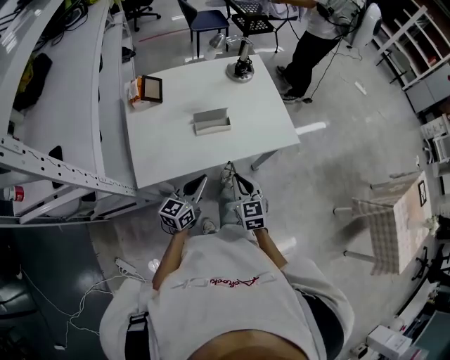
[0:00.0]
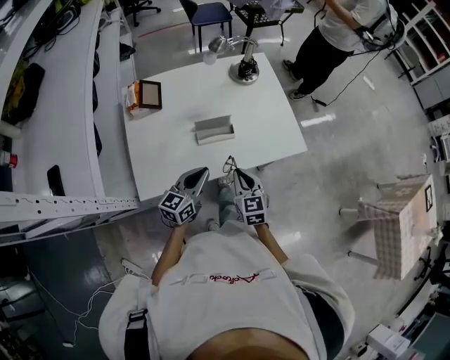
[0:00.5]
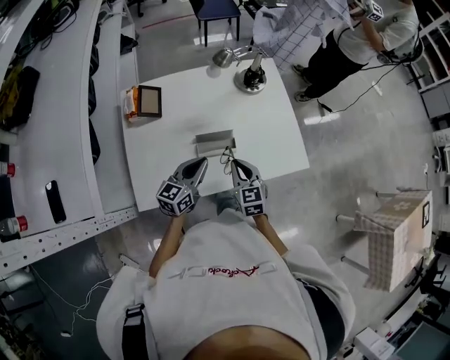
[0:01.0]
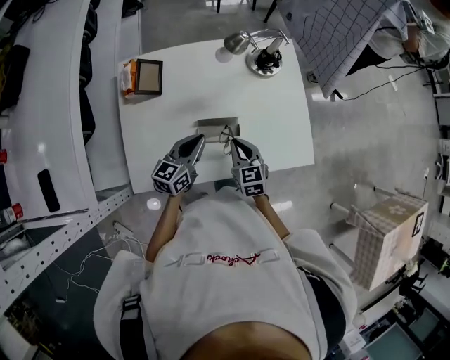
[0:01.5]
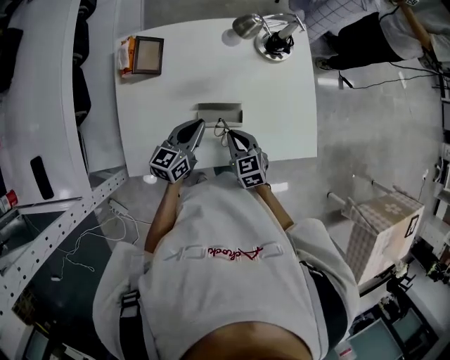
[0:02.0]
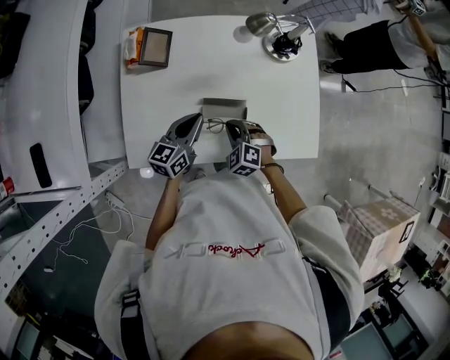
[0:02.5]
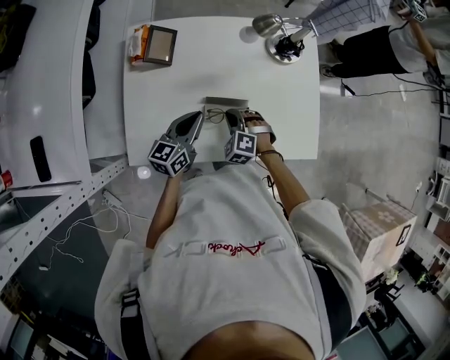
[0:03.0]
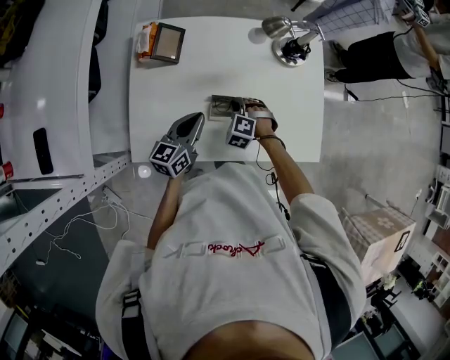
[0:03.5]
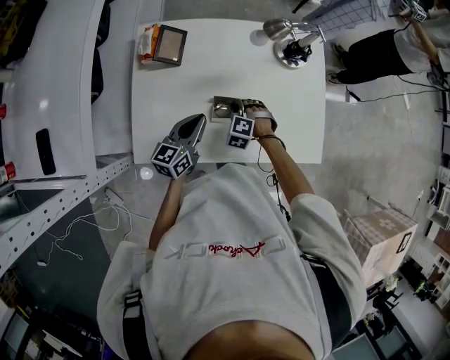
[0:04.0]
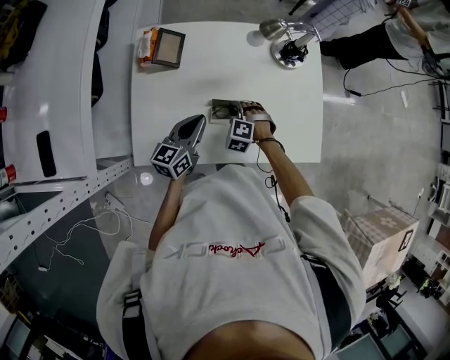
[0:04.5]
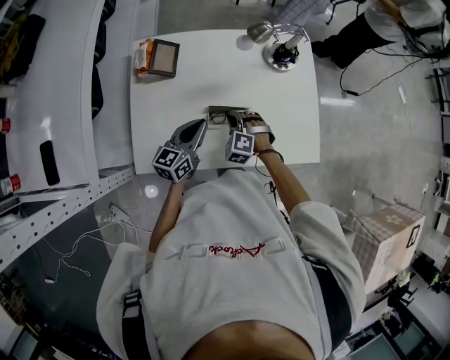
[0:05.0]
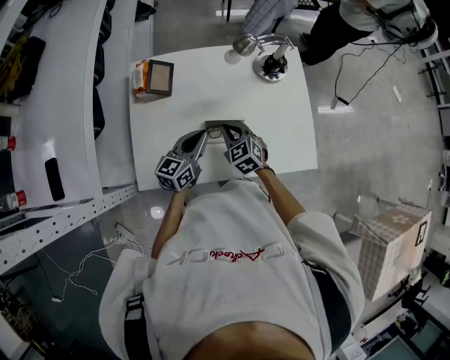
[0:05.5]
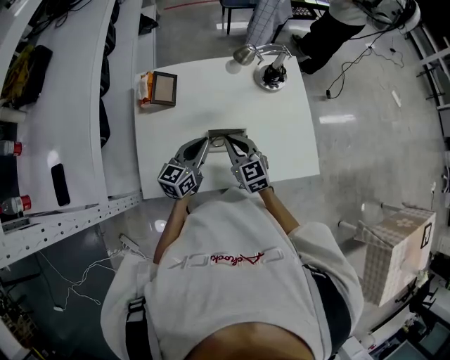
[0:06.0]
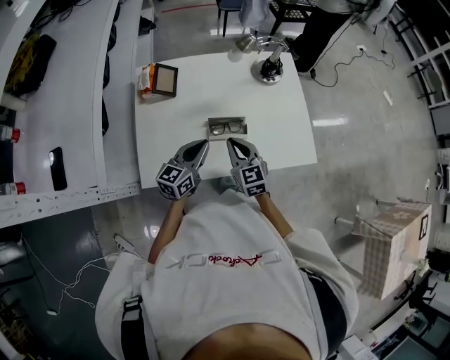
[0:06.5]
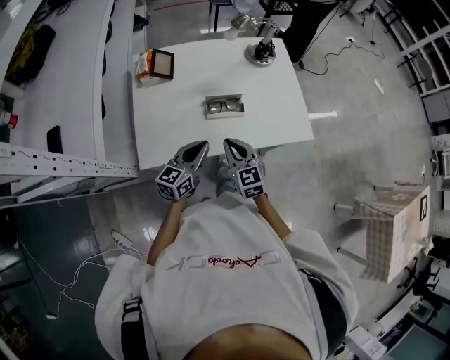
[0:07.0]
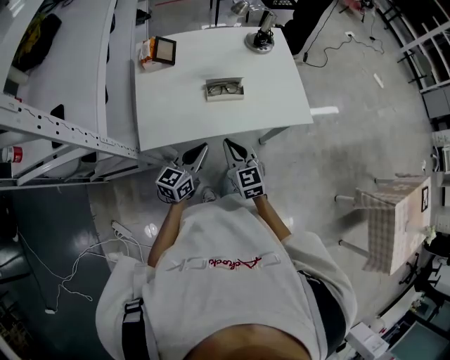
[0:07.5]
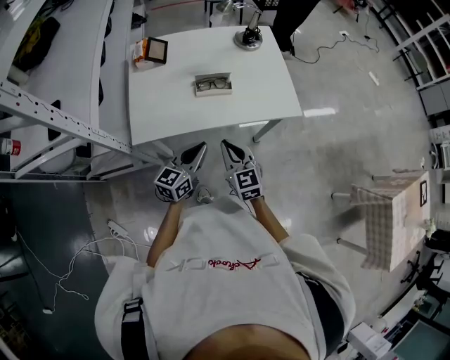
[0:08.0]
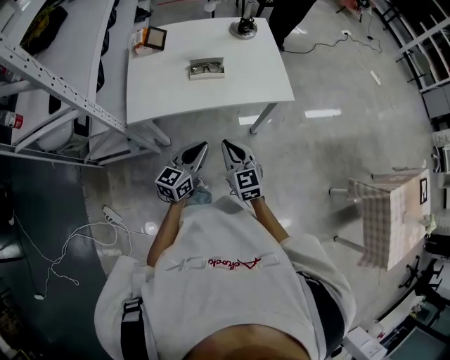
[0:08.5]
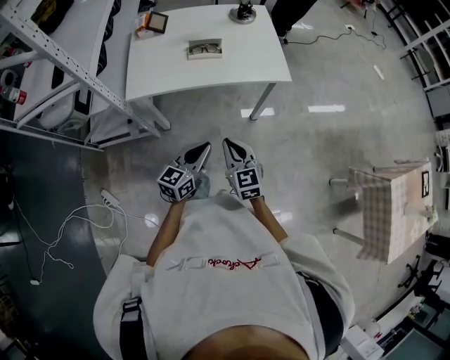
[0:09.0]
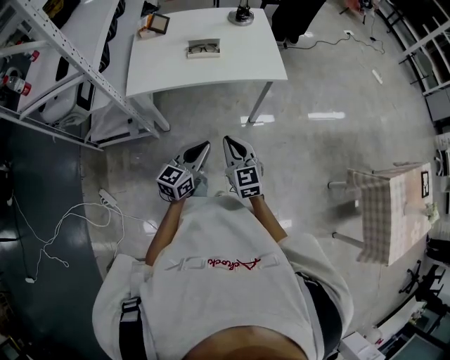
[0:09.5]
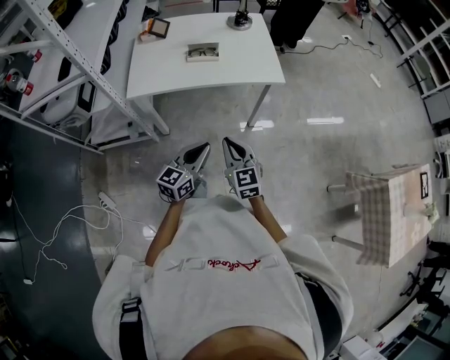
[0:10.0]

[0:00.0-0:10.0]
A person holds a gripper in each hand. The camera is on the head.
0.0 to 2.0 s: The right gripper goes roughly 20 cm forward and downward, and turns by about 30 degrees. Meanwhile the left gripper is displaced forward by some 25 cm.
2.0 to 4.0 s: The right gripper goes about 10 cm forward and downward, and rolls counterclockwise, seen from behind, by some 60 degrees.
4.0 to 6.0 s: The right gripper goes about 15 cm upward, and tips its fingers upward by roughly 40 degrees.
6.0 to 8.0 s: The grippers both shift backward by approximately 25 cm.
8.0 to 10.0 s: Both grippers travel together backward and to the right, some 25 cm.

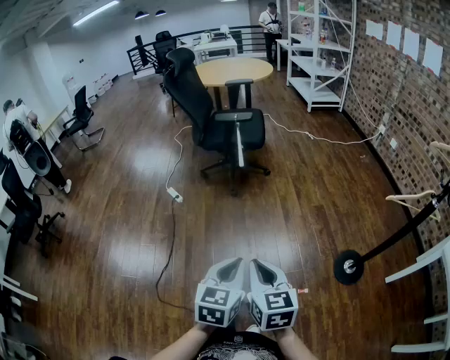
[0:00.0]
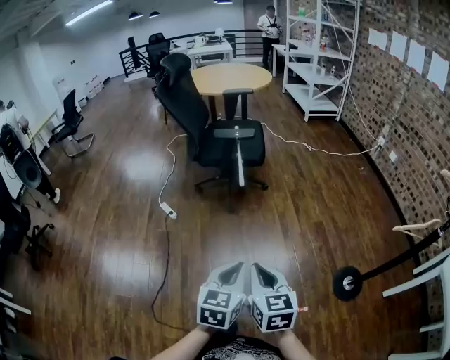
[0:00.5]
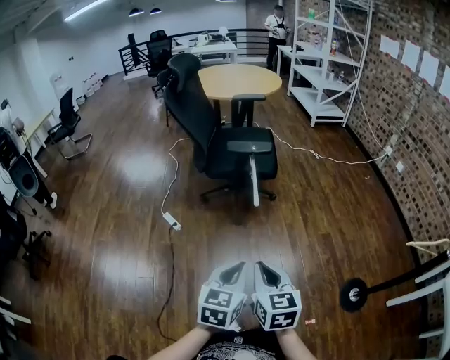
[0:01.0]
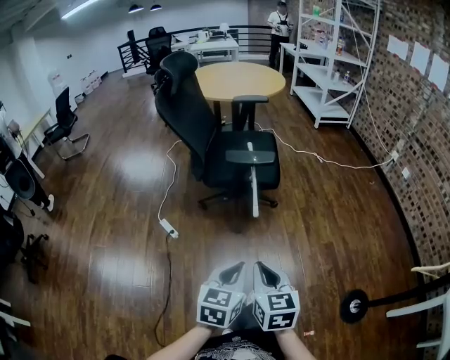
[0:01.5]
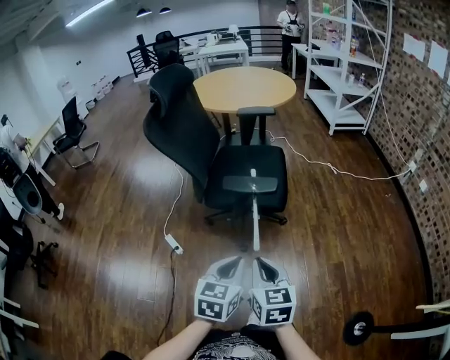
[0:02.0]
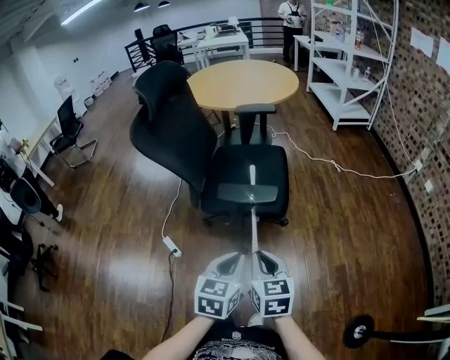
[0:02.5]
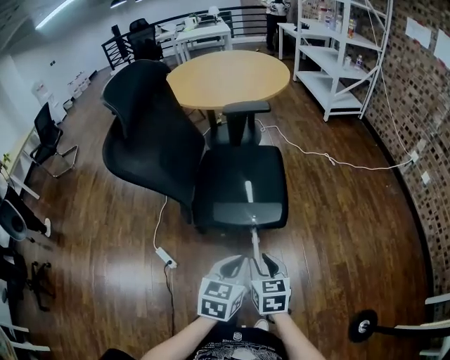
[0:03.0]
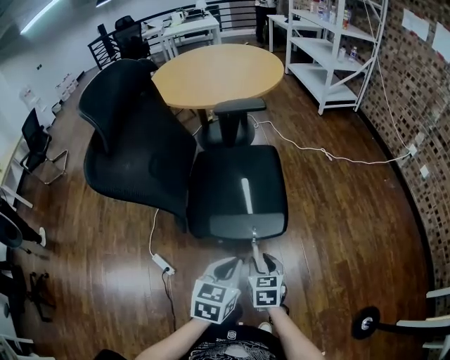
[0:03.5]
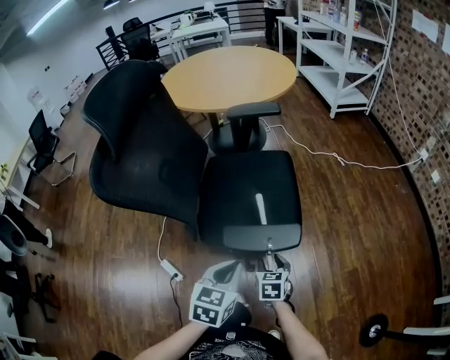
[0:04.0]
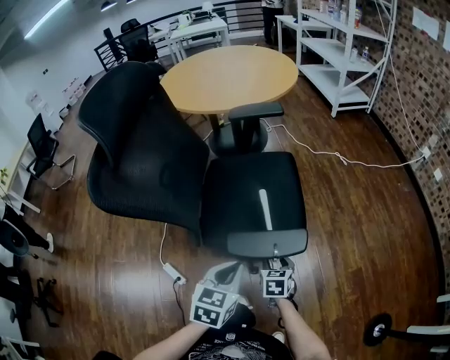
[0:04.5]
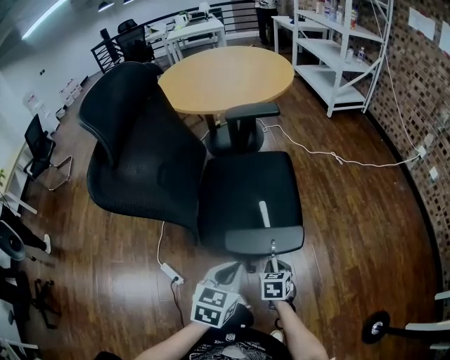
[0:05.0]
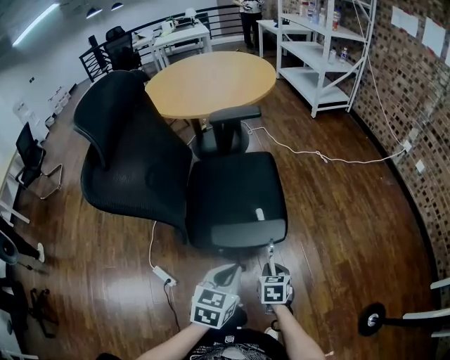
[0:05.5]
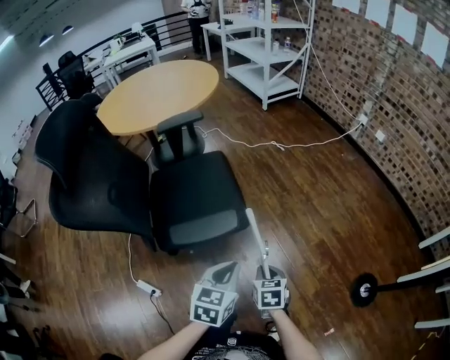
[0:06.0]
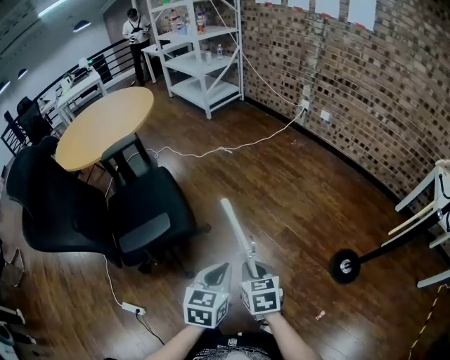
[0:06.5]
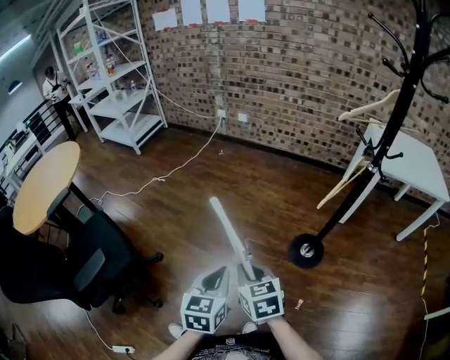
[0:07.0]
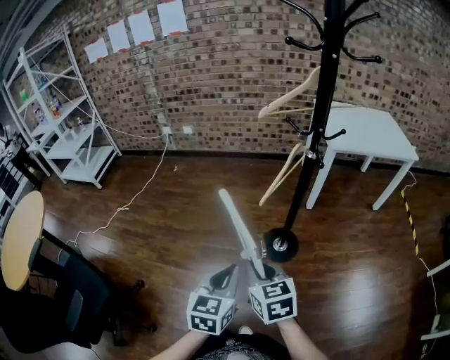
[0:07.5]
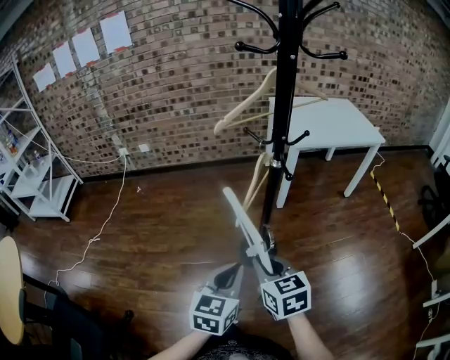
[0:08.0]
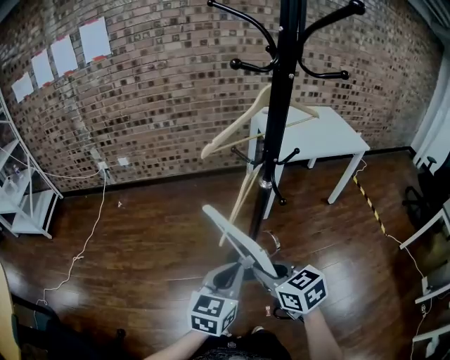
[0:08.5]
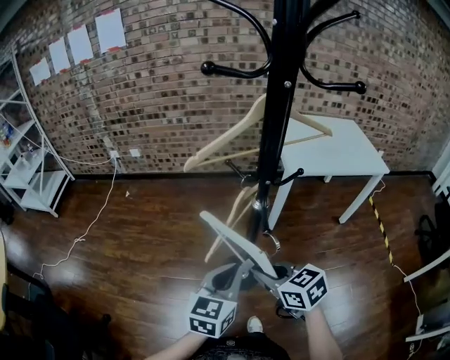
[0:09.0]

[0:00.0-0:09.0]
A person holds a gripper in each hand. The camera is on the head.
0.0 to 2.0 s: The pair of grippers is taken forward, approximately 50 cm.
2.0 to 4.5 s: The left gripper is displaced forward and to the left by some 30 cm, while the right gripper is displaced forward and downward by some 40 cm, rotates roughly 30 degrees, and opens its fingers.
4.5 to 7.0 s: The pair of grippers is taken about 60 cm. The right gripper turns by some 40 degrees, and closes its fingers. The left gripper changes its angle by approximately 50 degrees.
7.0 to 9.0 s: The two grippers travel together, approximately 50 cm. The left gripper changes its angle by some 30 degrees.

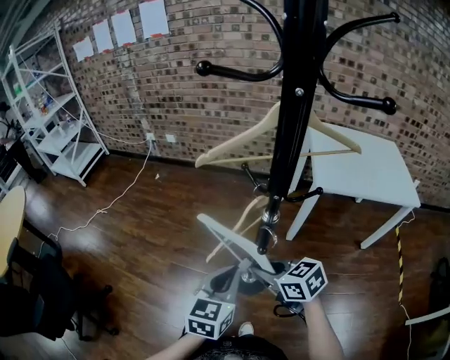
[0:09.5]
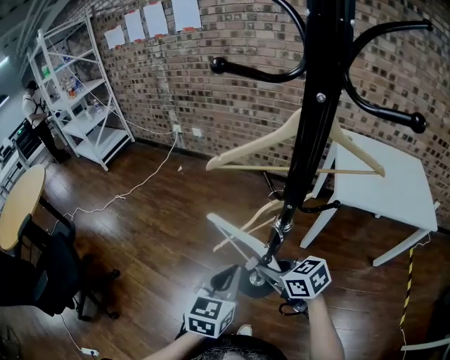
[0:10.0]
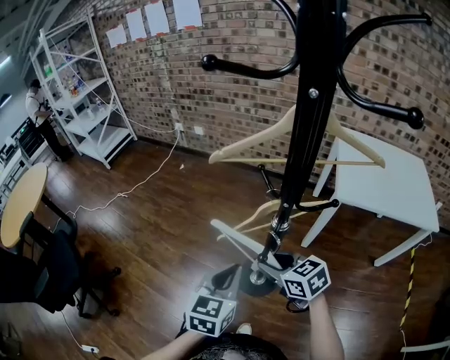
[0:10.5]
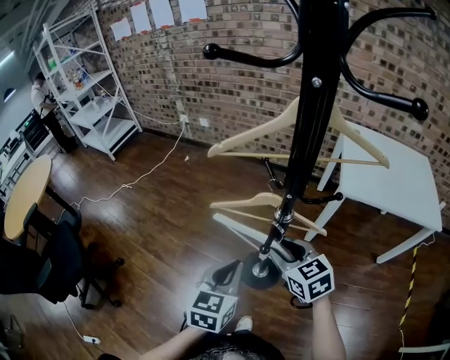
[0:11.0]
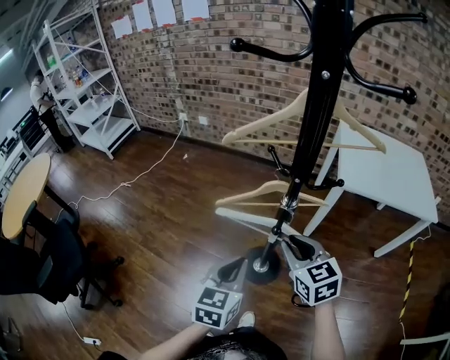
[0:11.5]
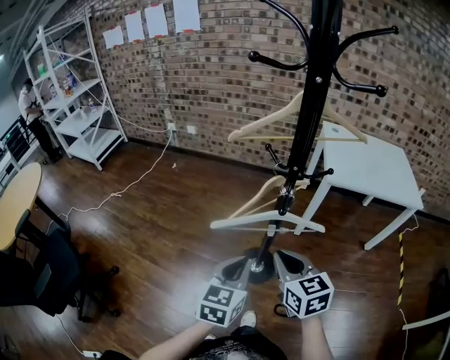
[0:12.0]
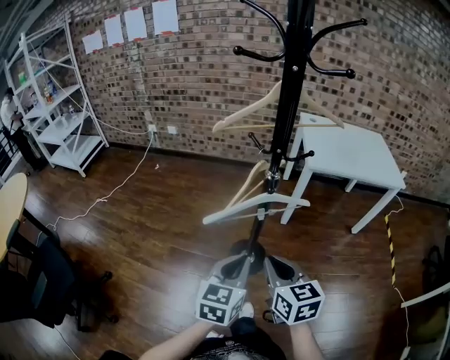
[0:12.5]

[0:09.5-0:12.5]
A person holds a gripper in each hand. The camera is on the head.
9.5 to 11.0 s: The right gripper is displaced to the right by some 5 cm, and opens.
11.0 to 12.5 s: Both grippers travel together backward, roughly 15 cm. The right gripper rotates roughly 30 degrees, and closes its fingers.

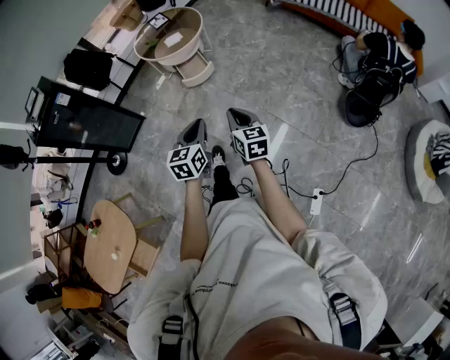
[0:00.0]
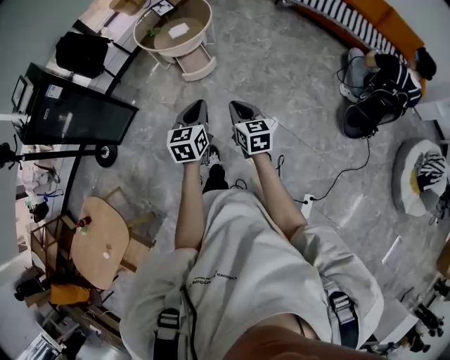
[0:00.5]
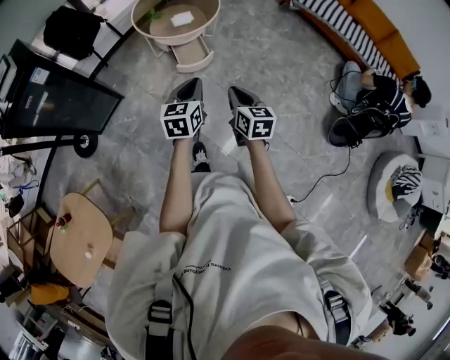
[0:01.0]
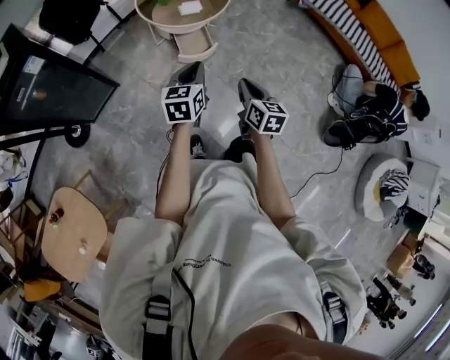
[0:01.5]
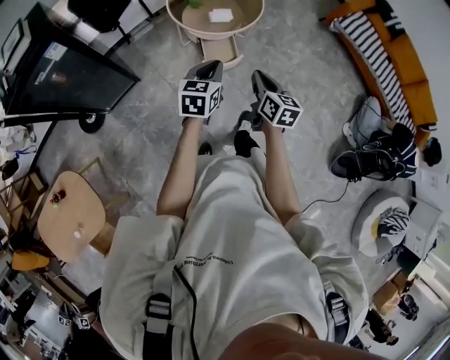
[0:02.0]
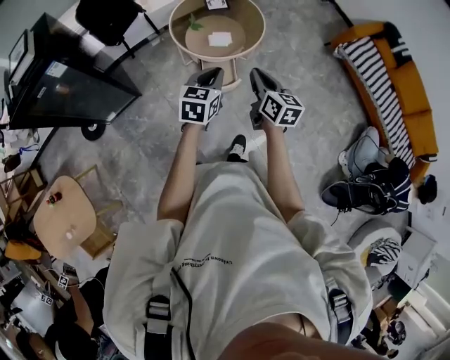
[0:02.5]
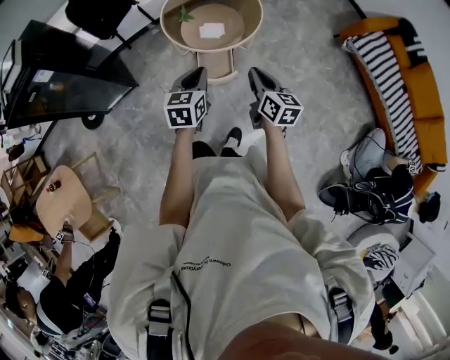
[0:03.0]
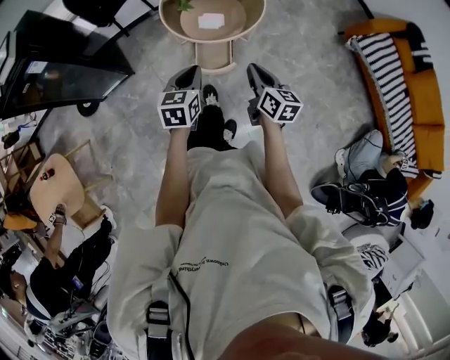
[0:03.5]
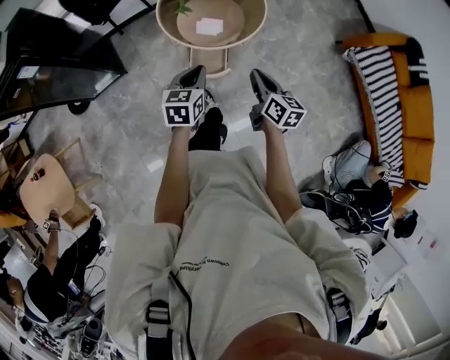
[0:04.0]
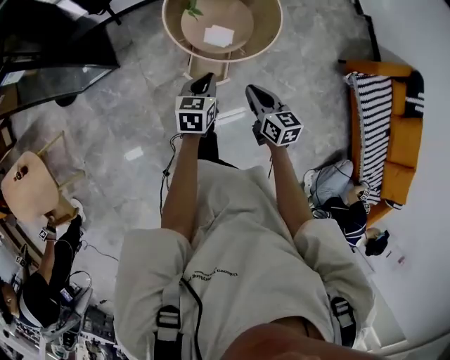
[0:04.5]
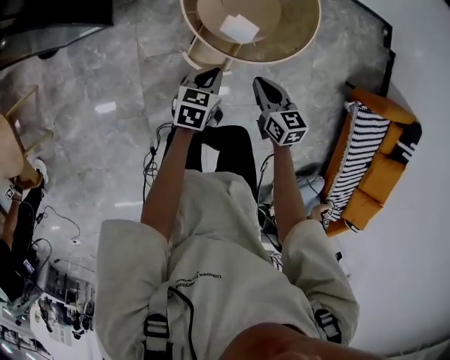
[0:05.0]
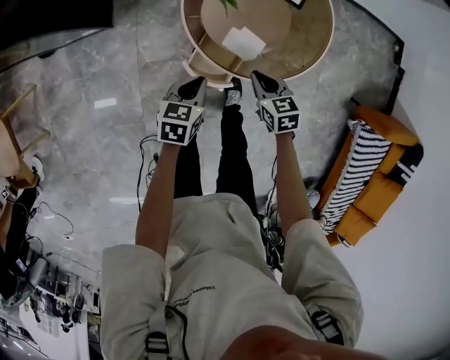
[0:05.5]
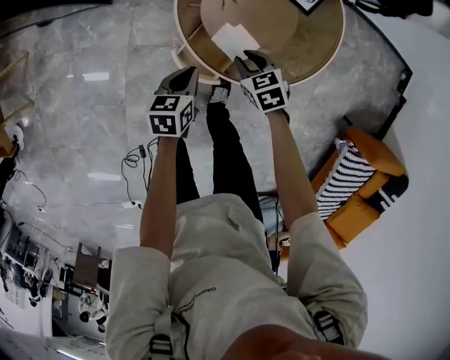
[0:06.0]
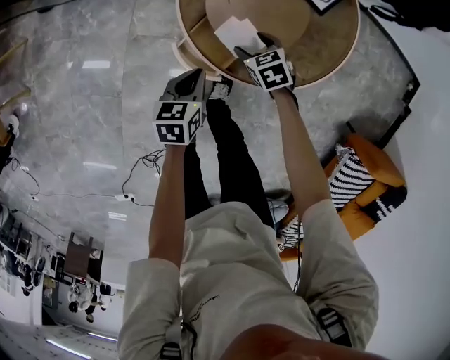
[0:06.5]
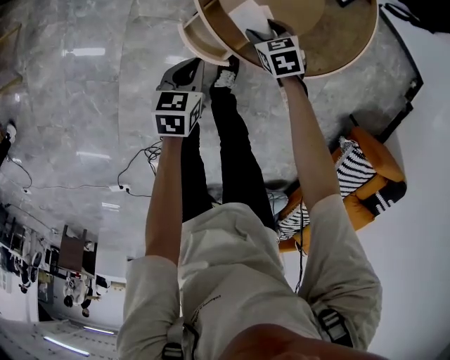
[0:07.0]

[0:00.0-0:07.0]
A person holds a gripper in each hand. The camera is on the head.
0.0 to 2.0 s: The pair of grippers is taken forward and to the left, some 50 cm.
2.0 to 3.5 s: Both grippers move forward and to the right, approximately 25 cm.
3.5 to 5.0 s: Both grippers move forward and downward, approximately 35 cm. The left gripper changes its angle by approximately 20 degrees; the right gripper rotates some 40 degrees.
5.0 to 7.0 s: The left gripper is displaced downward by roughly 20 cm, and changes its angle by roughly 30 degrees; the right gripper shifts approximately 30 cm downward, turns by approximately 50 degrees, and opens its fingers.
